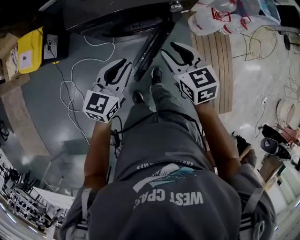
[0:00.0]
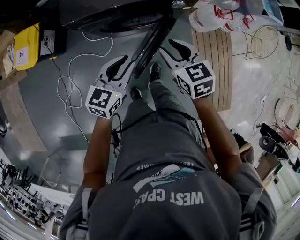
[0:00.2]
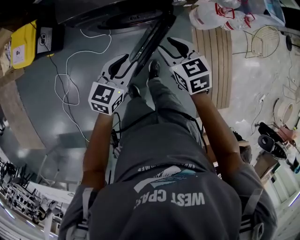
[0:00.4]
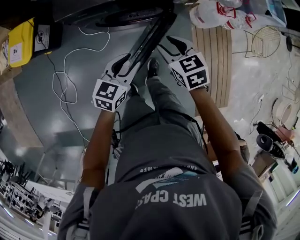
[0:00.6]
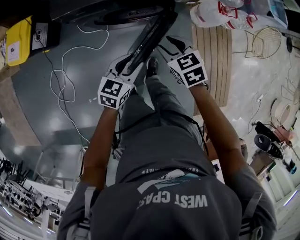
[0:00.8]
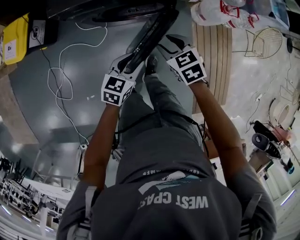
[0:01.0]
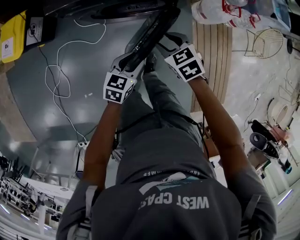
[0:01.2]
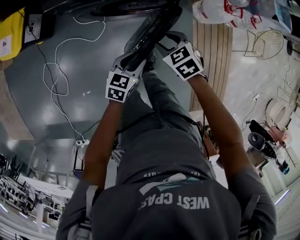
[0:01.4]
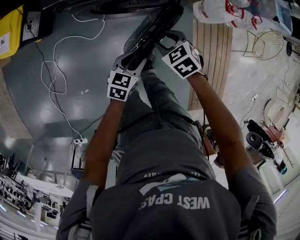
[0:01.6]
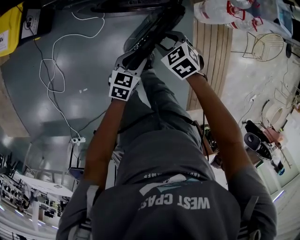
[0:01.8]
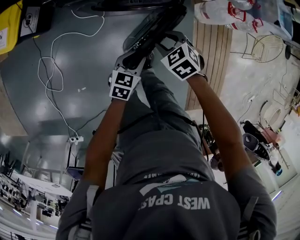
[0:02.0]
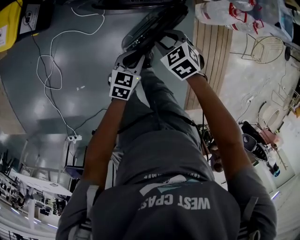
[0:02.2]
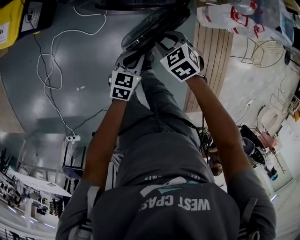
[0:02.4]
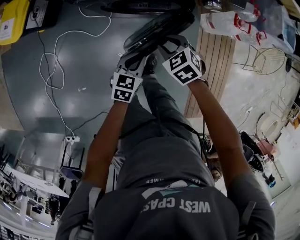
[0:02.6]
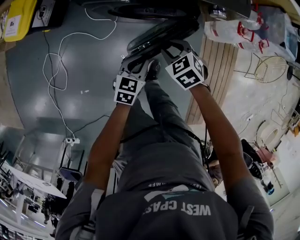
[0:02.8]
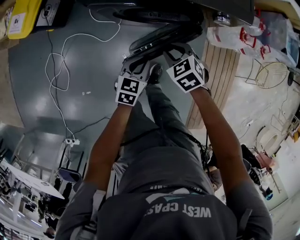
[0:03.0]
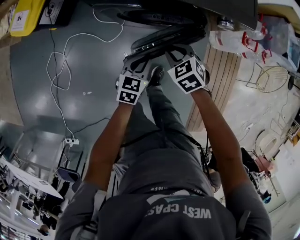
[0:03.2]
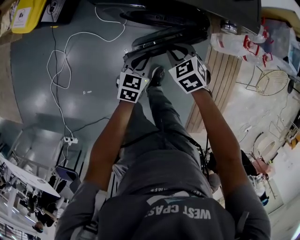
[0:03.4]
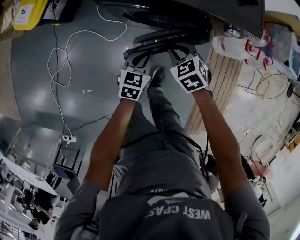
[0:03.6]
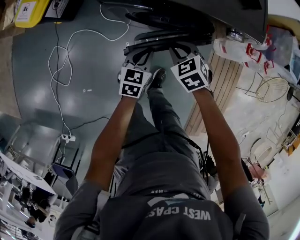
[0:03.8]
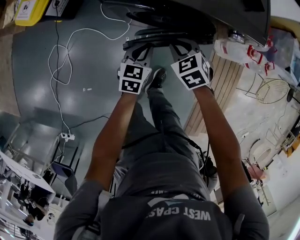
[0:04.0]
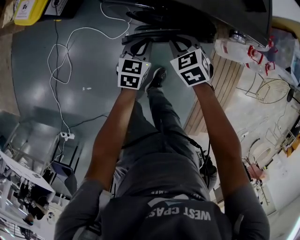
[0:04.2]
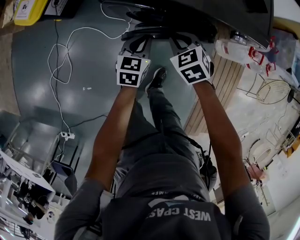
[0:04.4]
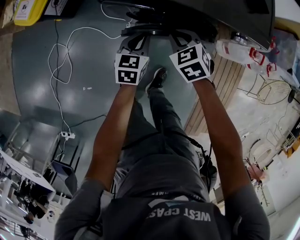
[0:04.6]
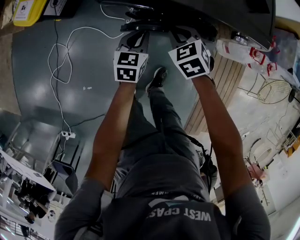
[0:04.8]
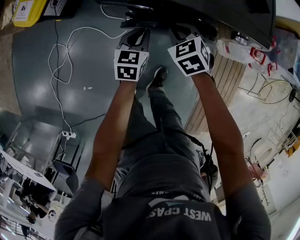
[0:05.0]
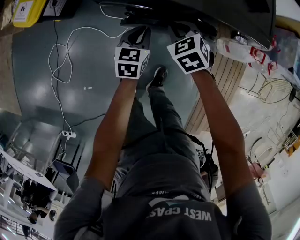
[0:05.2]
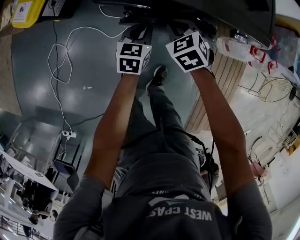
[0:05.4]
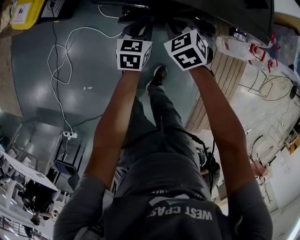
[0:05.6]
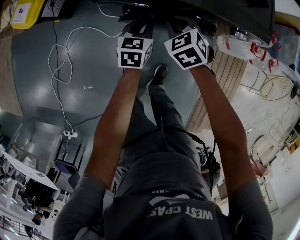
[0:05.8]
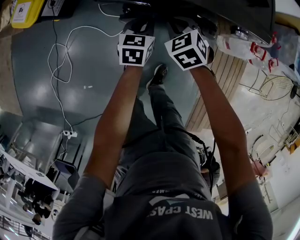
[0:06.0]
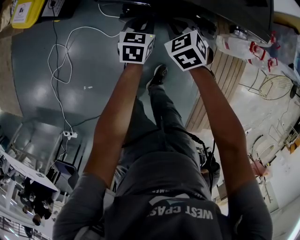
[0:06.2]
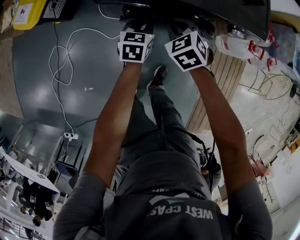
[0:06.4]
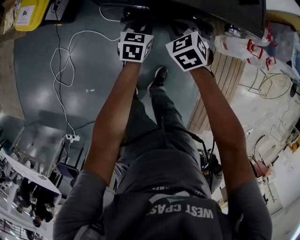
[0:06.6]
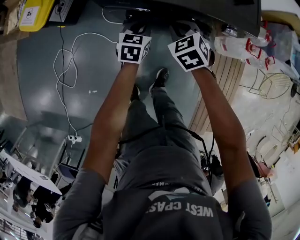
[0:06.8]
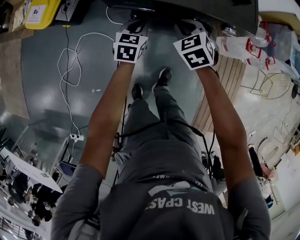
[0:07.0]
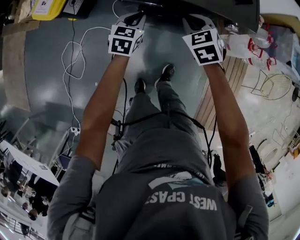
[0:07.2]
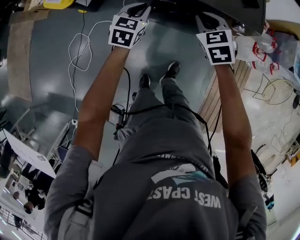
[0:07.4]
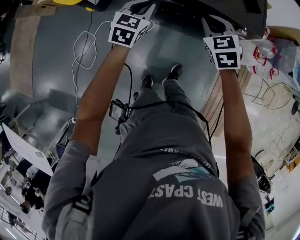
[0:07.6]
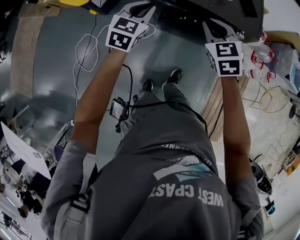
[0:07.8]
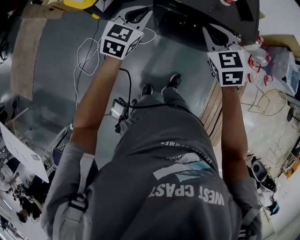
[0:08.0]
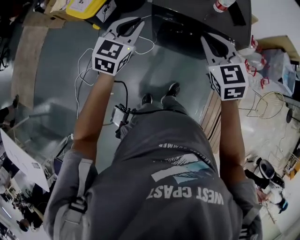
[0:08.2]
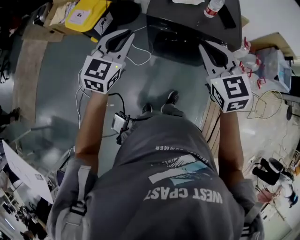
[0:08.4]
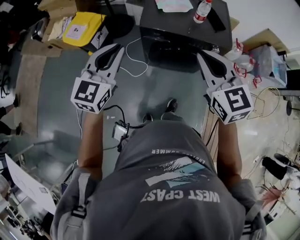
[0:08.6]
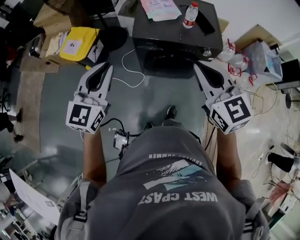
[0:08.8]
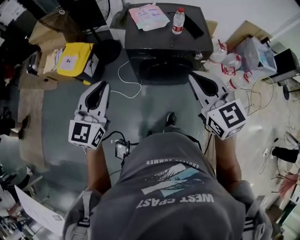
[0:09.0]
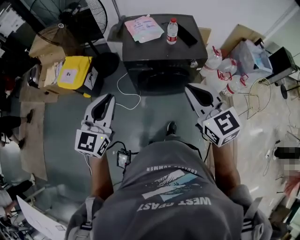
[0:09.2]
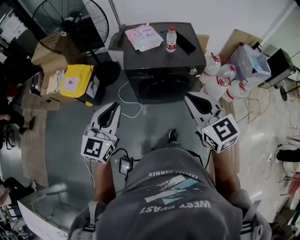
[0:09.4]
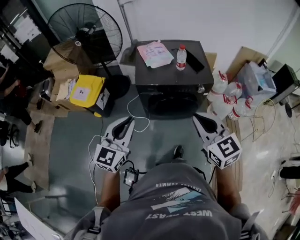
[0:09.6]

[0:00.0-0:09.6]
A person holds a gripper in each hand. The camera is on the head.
0:00.0 to 0:01.6: The two grippers go about 20 cm downward. The left gripper turns by roughly 20 degrees, and opens. Meanwhile the right gripper swivels approximately 40 degrees.
0:01.6 to 0:03.2: The right gripper shifts about 5 cm to the left, and closes. The left gripper is displaced forward by about 5 cm, and closes up.
0:03.2 to 0:04.8: Both grippers move forward, approximately 10 cm.
0:04.8 to 0:06.4: The grippers stay close to where they were, moving slightly.
0:06.4 to 0:08.0: The left gripper travels upward and to the left by roughly 35 cm, and swivels about 30 degrees. The right gripper shifts roughly 30 cm upward.
0:08.0 to 0:09.6: Both grippers travel together backward and upward, some 25 cm. The left gripper turns by some 20 degrees. The right gripper rotates approximately 20 degrees.

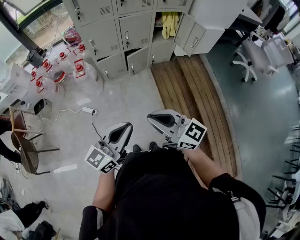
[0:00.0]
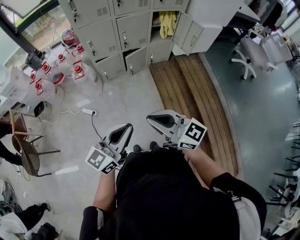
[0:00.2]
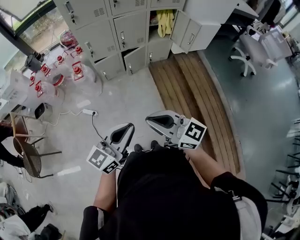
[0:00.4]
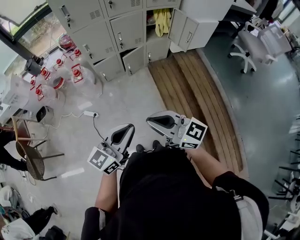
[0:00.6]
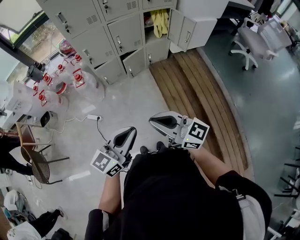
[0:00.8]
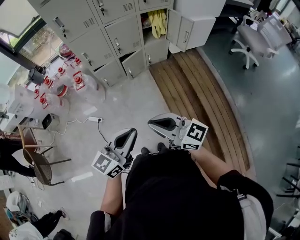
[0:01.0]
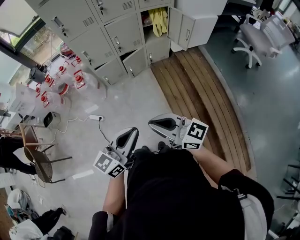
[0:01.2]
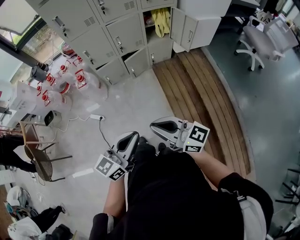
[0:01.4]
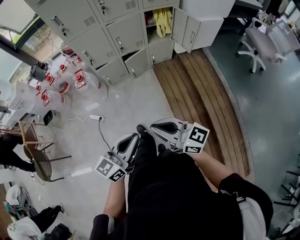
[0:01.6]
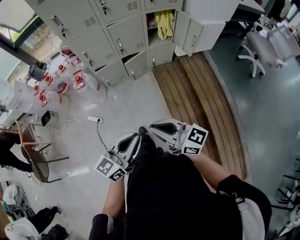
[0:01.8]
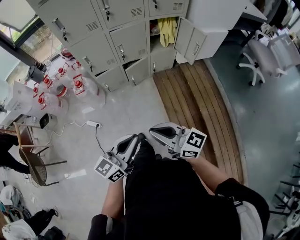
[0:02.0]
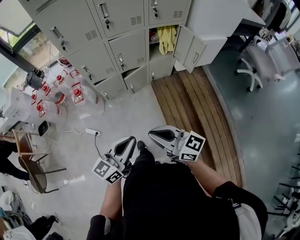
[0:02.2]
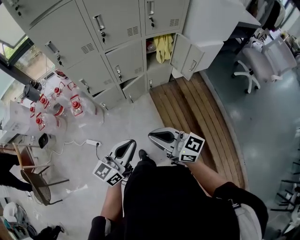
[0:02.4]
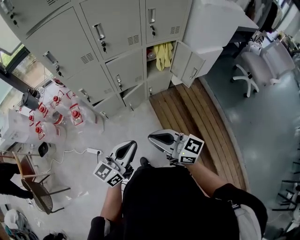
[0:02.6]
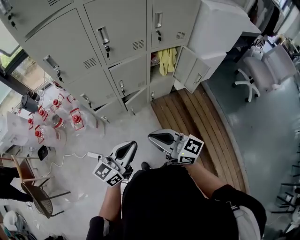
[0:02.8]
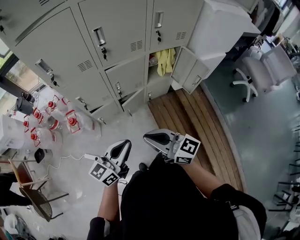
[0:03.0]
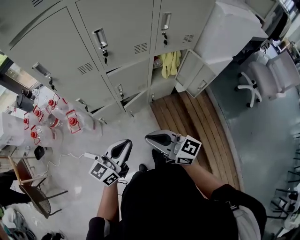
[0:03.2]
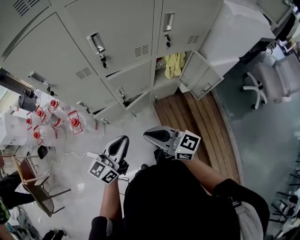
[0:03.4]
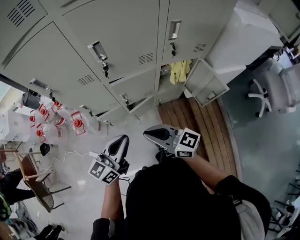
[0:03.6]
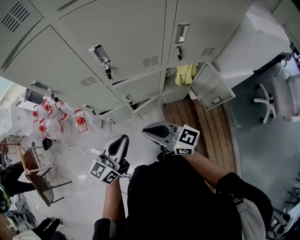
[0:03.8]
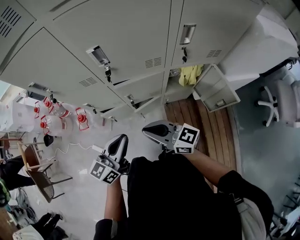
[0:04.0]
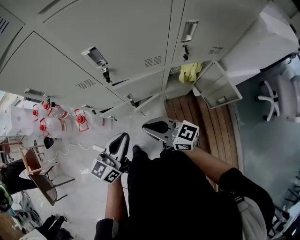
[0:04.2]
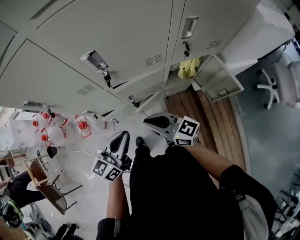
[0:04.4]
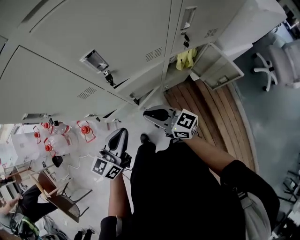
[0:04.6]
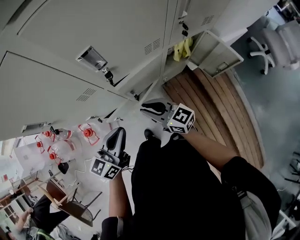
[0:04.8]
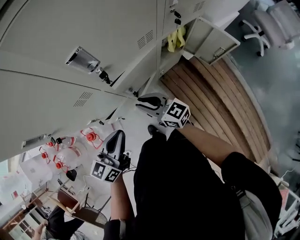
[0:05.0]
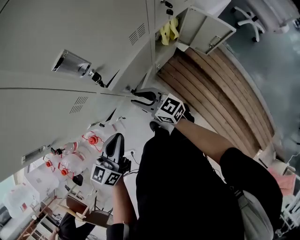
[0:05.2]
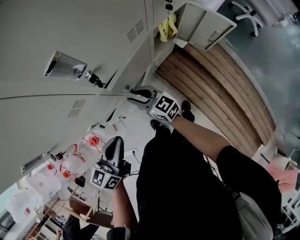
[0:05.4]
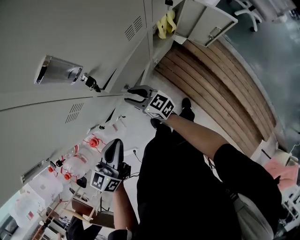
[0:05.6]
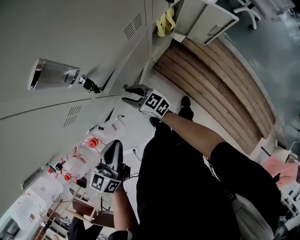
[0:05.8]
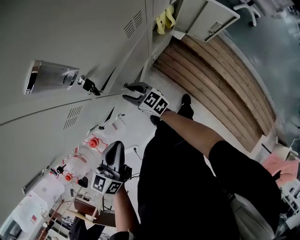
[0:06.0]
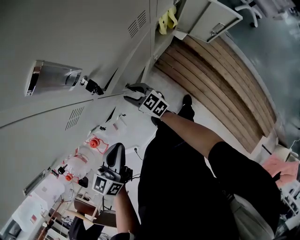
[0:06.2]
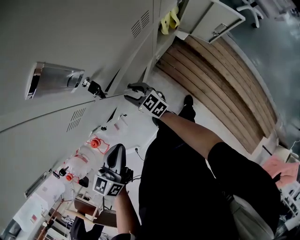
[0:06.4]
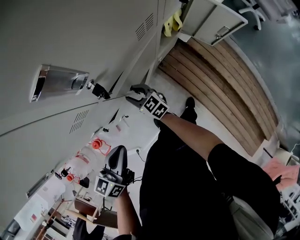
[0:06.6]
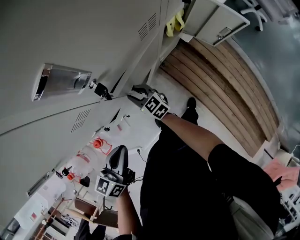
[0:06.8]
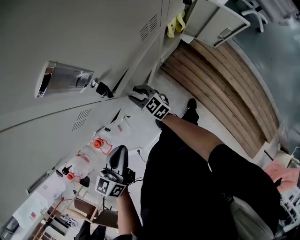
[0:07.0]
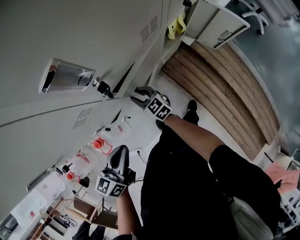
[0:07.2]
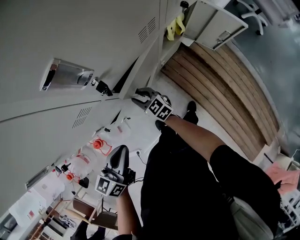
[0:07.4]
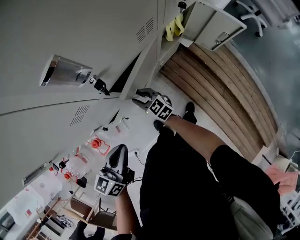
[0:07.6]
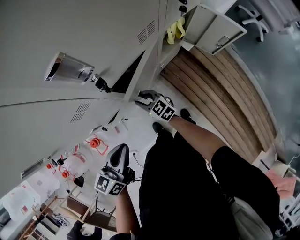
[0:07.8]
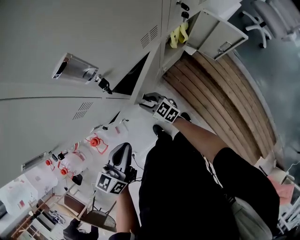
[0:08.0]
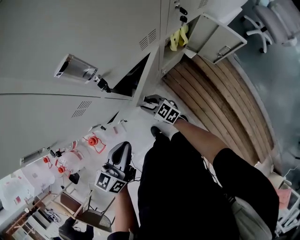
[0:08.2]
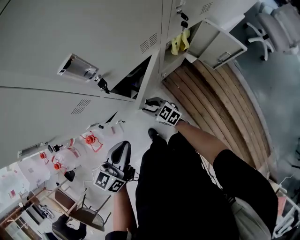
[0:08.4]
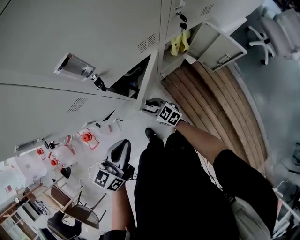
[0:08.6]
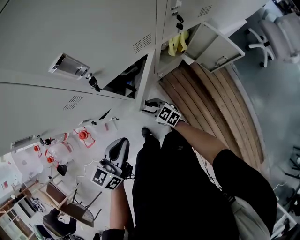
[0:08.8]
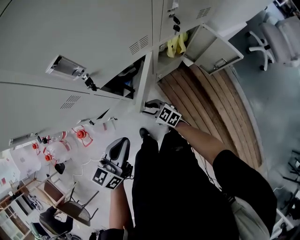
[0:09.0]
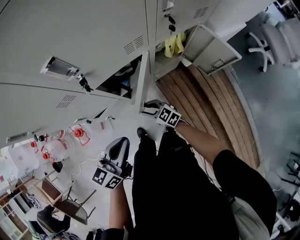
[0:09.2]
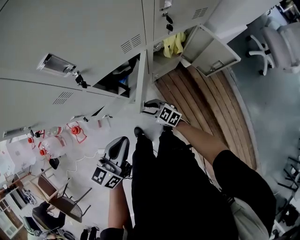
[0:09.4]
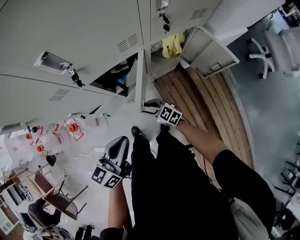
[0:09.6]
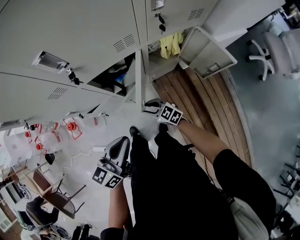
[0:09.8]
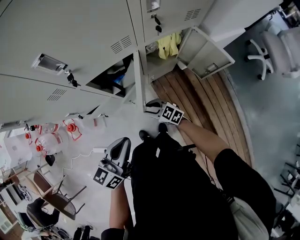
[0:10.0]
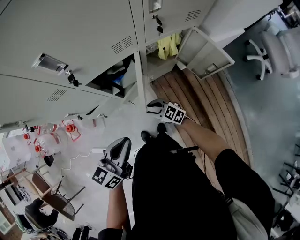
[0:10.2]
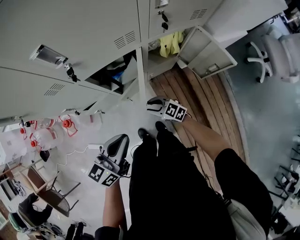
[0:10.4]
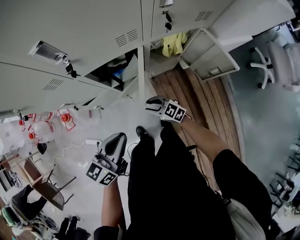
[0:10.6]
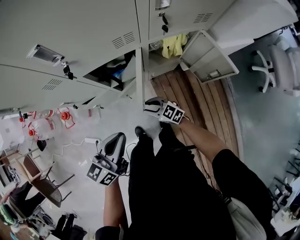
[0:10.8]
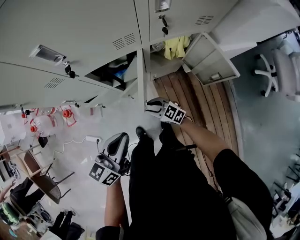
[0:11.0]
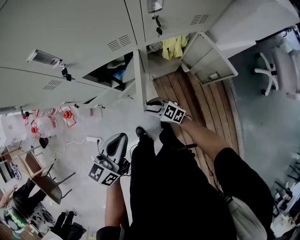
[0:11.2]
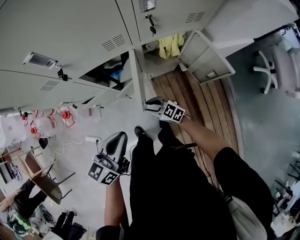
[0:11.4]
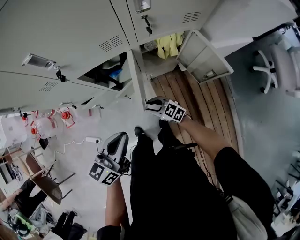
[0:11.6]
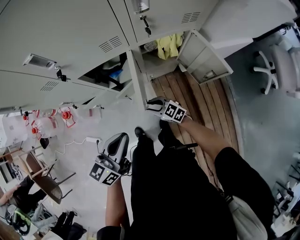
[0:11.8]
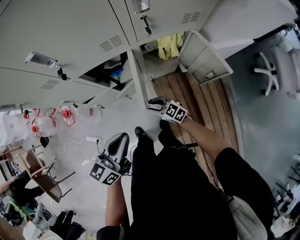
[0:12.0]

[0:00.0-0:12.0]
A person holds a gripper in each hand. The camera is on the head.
0:00.0 to 0:01.6: The grippers both shift to the right by about 10 cm.
0:01.6 to 0:03.0: Both grippers move forward, approximately 35 cm.
0:03.0 to 0:04.4: The two grippers go approximately 25 cm forward.
0:04.4 to 0:06.0: The right gripper shifts approximately 25 cm downward, rotates about 40 degrees, and opens up. Meanwhile the left gripper ends up some 15 cm from where it was, and rotates approximately 30 degrees.
0:06.0 to 0:07.6: The grippers move only a little.
0:07.6 to 0:09.0: The right gripper is displaced backward and to the right by roughly 10 cm, and rotates some 20 degrees, while the left gripper heads to the right, covering some 10 cm.
0:09.0 to 0:10.4: The left gripper goes approximately 5 cm to the right; the right gripper moves to the right and backward, about 10 cm.
0:10.4 to 0:12.0: Both grippers travel together to the right, some 5 cm.

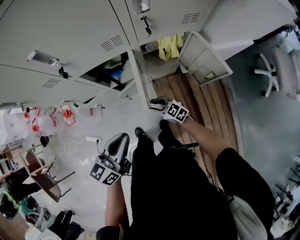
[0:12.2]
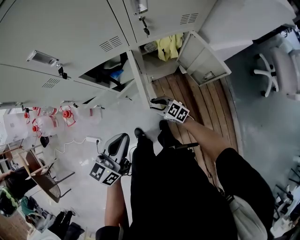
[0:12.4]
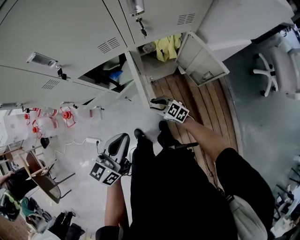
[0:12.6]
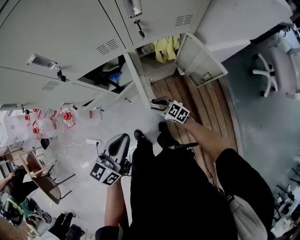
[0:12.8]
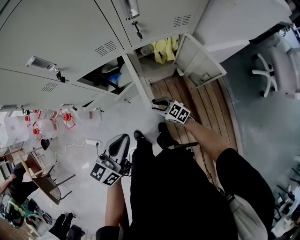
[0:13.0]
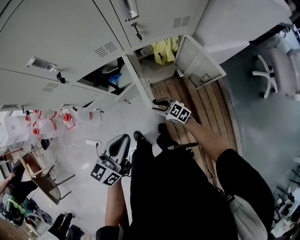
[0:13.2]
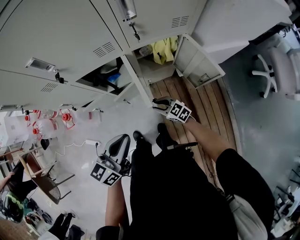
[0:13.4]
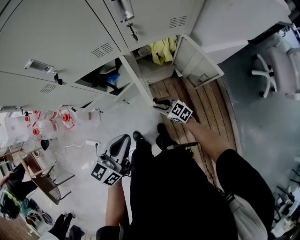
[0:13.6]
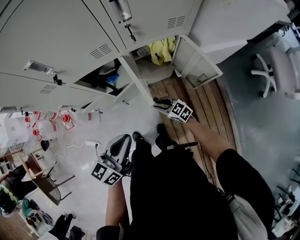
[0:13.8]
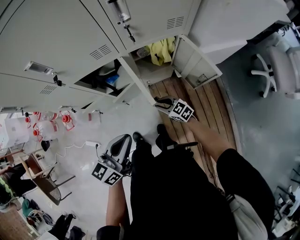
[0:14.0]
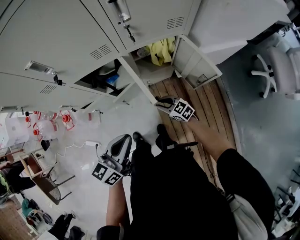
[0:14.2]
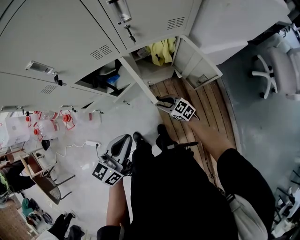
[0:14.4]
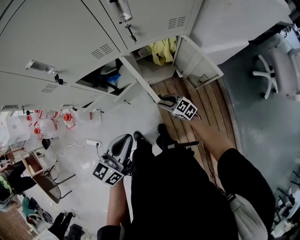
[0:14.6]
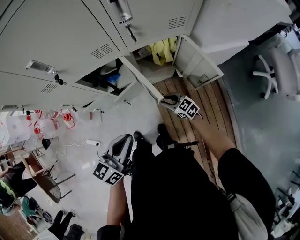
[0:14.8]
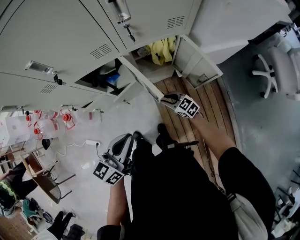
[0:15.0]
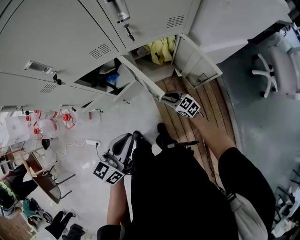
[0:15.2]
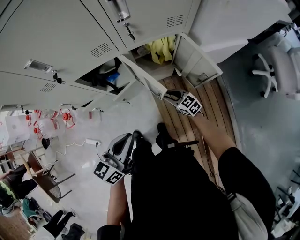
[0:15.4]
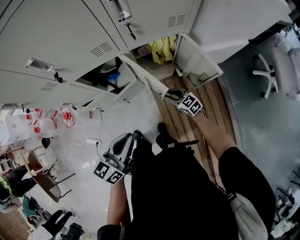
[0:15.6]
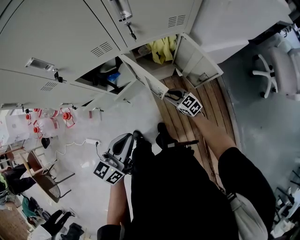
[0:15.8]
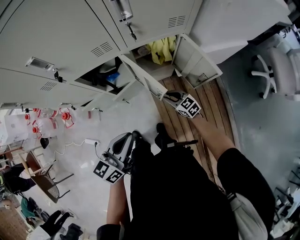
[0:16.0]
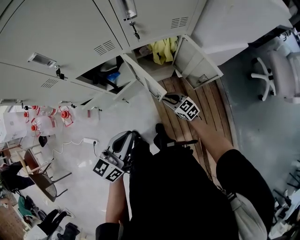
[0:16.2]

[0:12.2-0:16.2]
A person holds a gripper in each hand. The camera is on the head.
0:12.2 to 0:13.6: The right gripper is displaced to the right by about 5 cm.
0:13.6 to 0:14.8: The right gripper goes roughly 5 cm to the right.
0:14.8 to 0:16.2: There are only small adjustments of the grippers.
